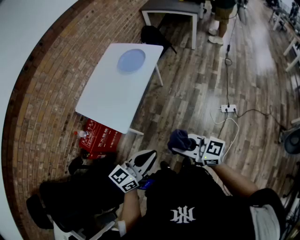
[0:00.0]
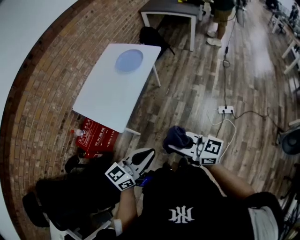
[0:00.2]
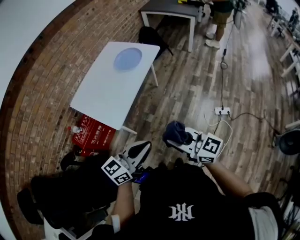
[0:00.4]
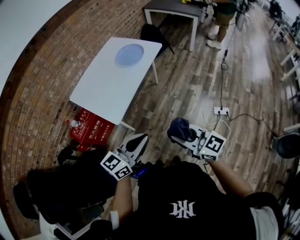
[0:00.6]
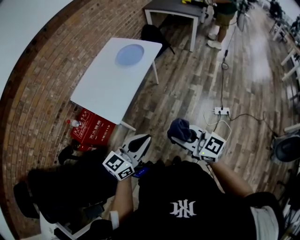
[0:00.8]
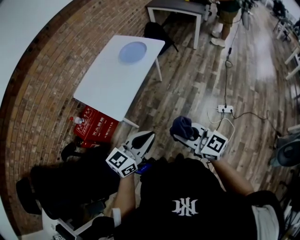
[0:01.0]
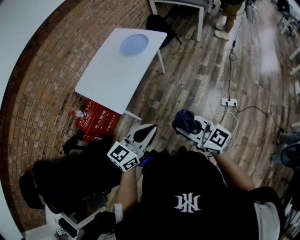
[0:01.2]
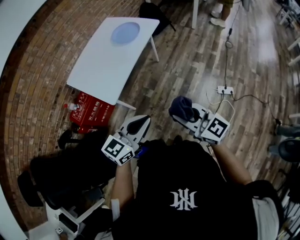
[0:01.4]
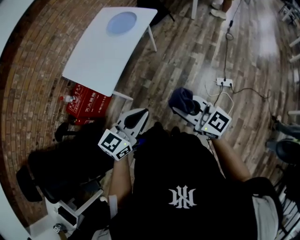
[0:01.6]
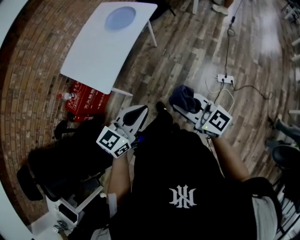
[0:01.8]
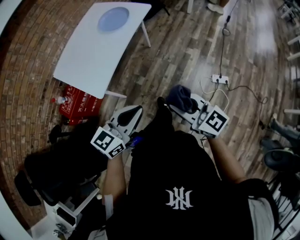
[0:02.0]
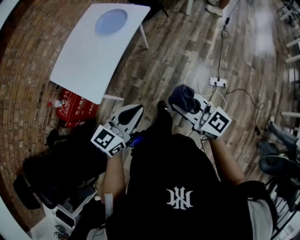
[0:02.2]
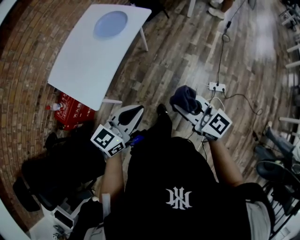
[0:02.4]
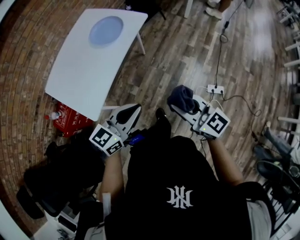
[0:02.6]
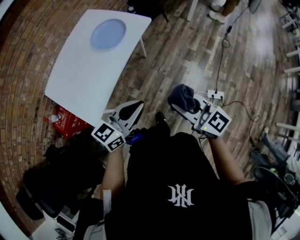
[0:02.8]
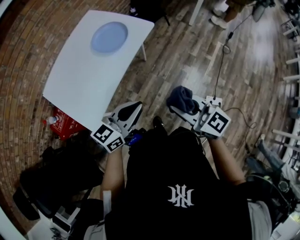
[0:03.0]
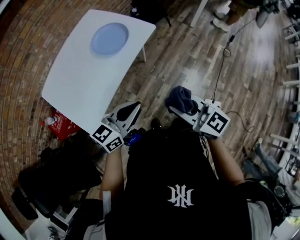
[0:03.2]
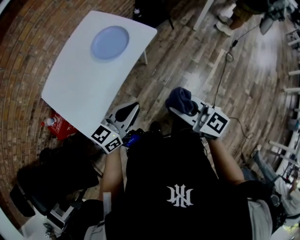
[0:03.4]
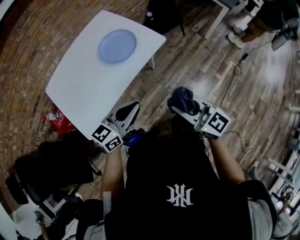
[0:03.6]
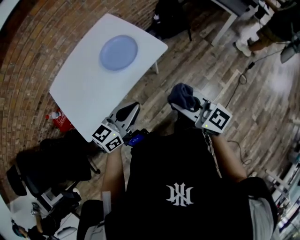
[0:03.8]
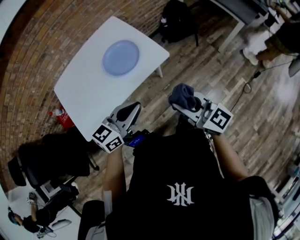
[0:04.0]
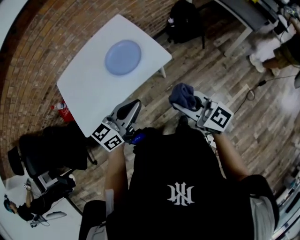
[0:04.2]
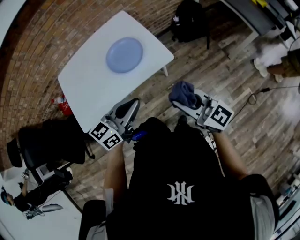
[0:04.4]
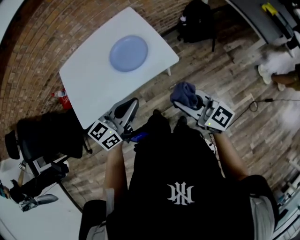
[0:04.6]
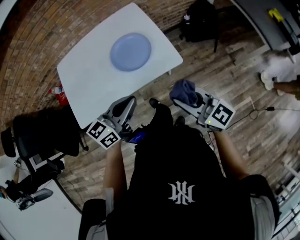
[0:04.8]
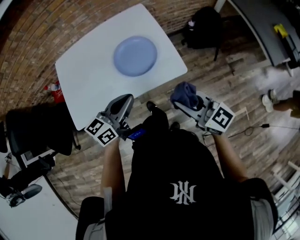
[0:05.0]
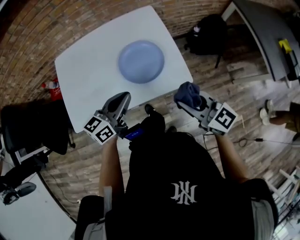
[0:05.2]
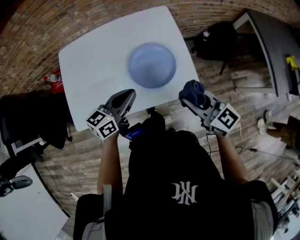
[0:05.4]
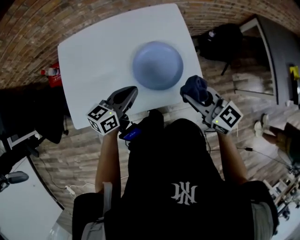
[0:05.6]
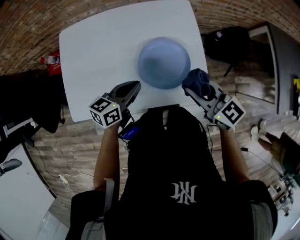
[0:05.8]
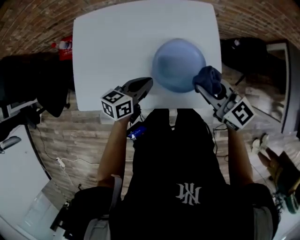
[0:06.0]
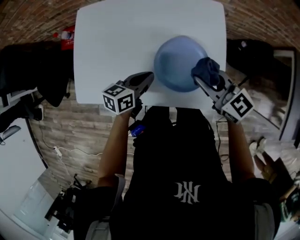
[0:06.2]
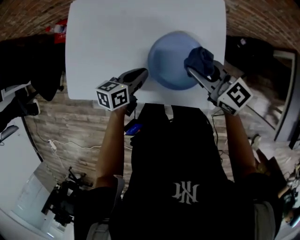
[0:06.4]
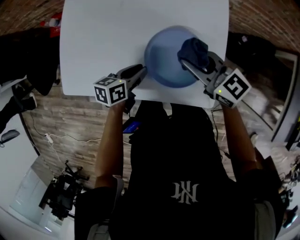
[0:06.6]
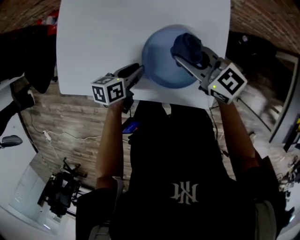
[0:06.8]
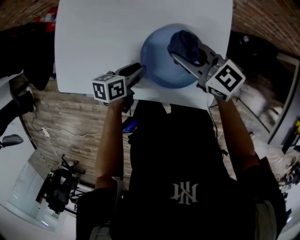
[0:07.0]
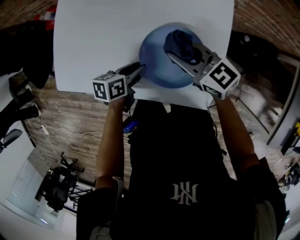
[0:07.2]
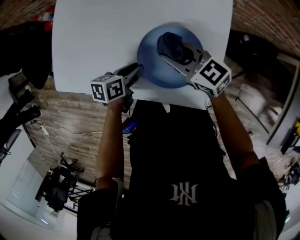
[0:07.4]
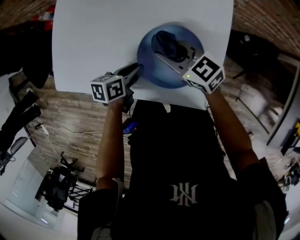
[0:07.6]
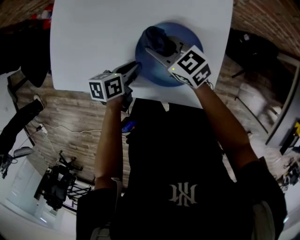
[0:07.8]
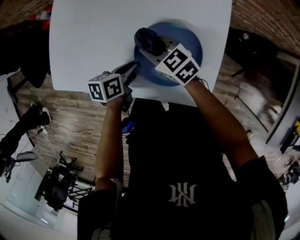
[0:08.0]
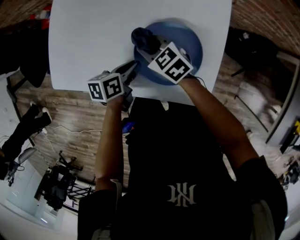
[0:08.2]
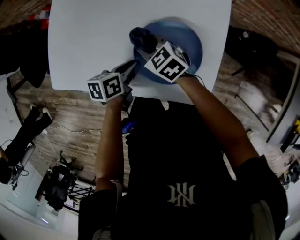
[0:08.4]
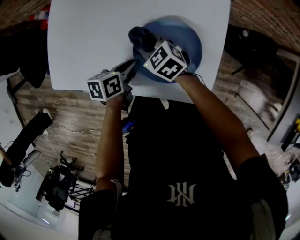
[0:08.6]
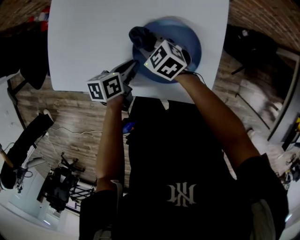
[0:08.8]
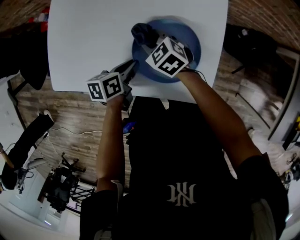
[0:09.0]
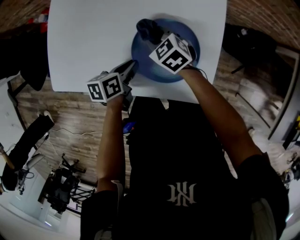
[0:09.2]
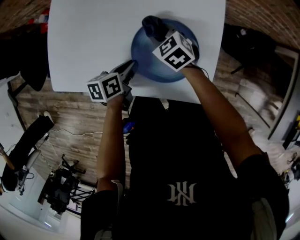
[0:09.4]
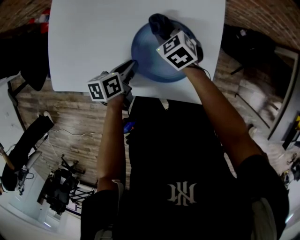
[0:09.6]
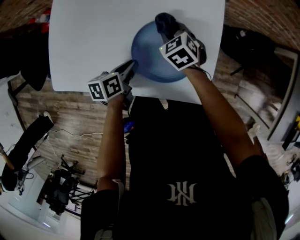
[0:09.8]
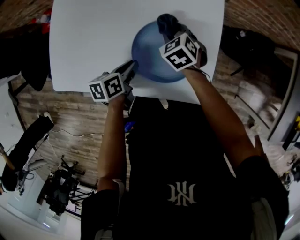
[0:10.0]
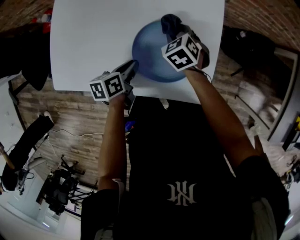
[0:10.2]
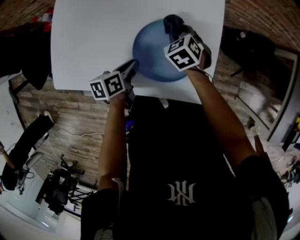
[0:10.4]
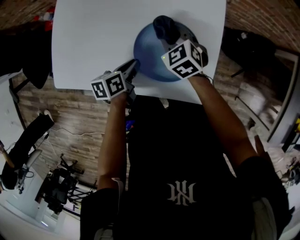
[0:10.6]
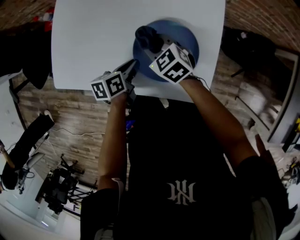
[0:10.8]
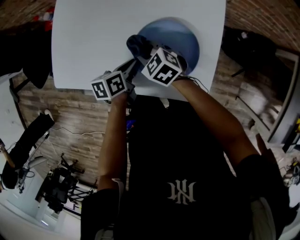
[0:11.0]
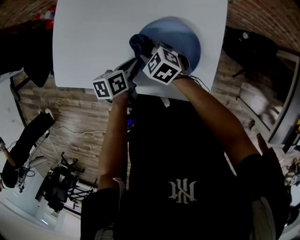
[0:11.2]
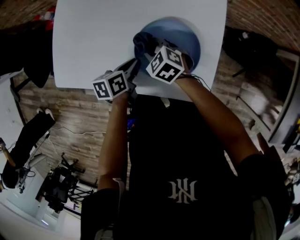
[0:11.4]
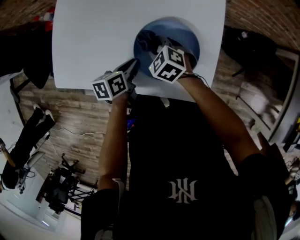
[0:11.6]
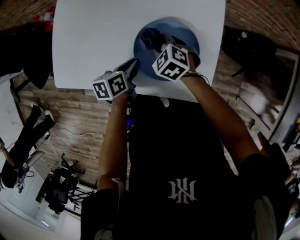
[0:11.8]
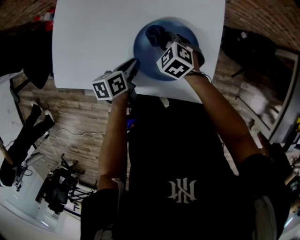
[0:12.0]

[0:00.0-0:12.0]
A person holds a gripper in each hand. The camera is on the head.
0:00.0 to 0:01.6: The left gripper moves about 5 cm; the right gripper moves to the right, roughly 5 cm.
0:01.6 to 0:03.0: The grippers both shift forward by about 30 cm.
0:03.0 to 0:04.4: The left gripper moves about 25 cm, and changes its angle by some 30 degrees. Meanwhile the right gripper changes place by approximately 30 cm, and rotates roughly 30 degrees.
0:04.4 to 0:06.0: The left gripper shifts roughly 35 cm forward, to the left and downward, and turns by roughly 40 degrees; the right gripper shifts some 35 cm forward, and changes its angle by approximately 30 degrees.
0:06.0 to 0:07.6: The left gripper heads downward, covering roughly 10 cm, and changes its angle by some 30 degrees; the right gripper goes roughly 15 cm downward, forward and to the left, and turns by approximately 20 degrees.
0:07.6 to 0:09.0: The right gripper heads downward, covering roughly 10 cm, and changes its angle by some 20 degrees.
0:09.0 to 0:10.4: The right gripper moves to the right, about 10 cm, and rotates some 30 degrees.
0:10.4 to 0:12.0: The right gripper travels to the left by roughly 5 cm, and swivels approximately 20 degrees.

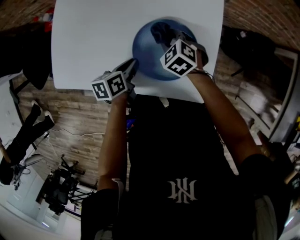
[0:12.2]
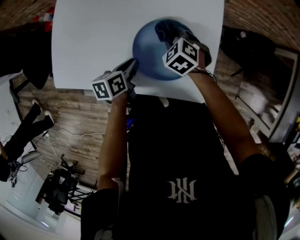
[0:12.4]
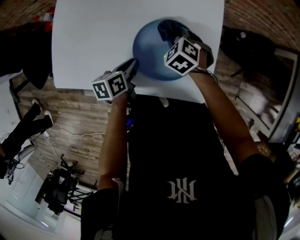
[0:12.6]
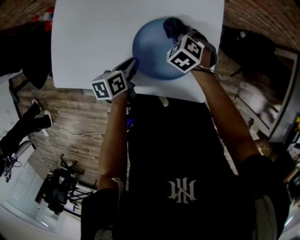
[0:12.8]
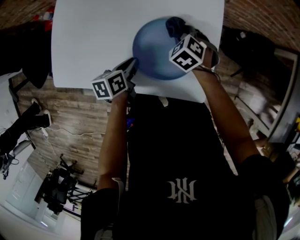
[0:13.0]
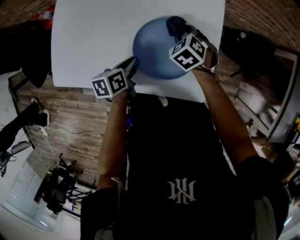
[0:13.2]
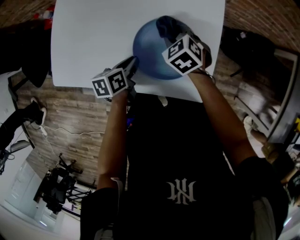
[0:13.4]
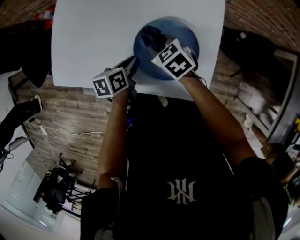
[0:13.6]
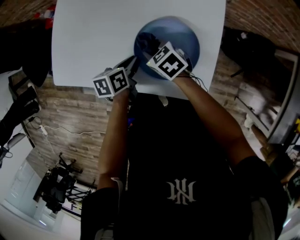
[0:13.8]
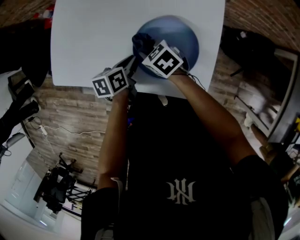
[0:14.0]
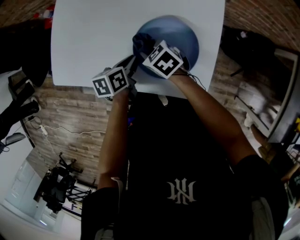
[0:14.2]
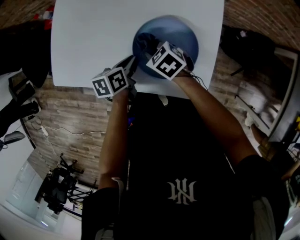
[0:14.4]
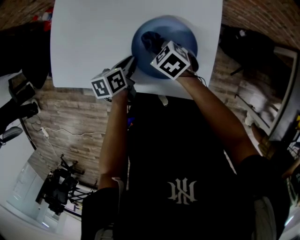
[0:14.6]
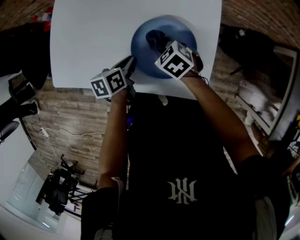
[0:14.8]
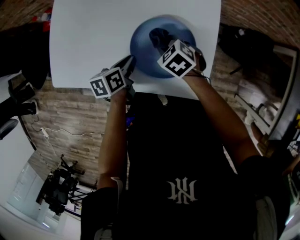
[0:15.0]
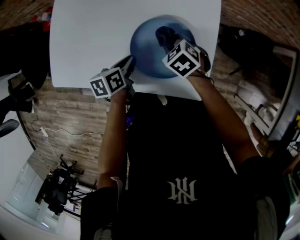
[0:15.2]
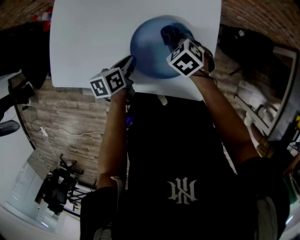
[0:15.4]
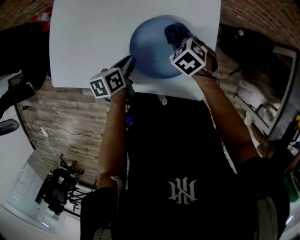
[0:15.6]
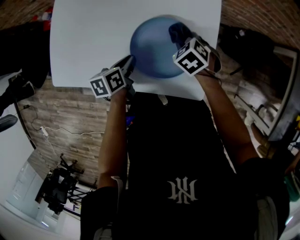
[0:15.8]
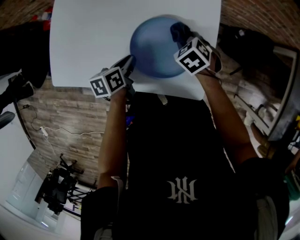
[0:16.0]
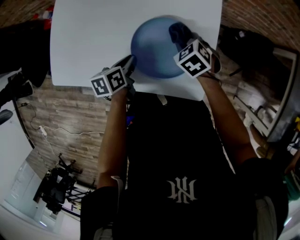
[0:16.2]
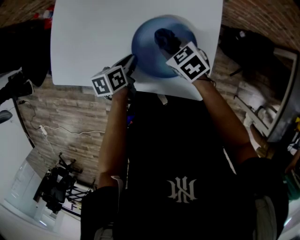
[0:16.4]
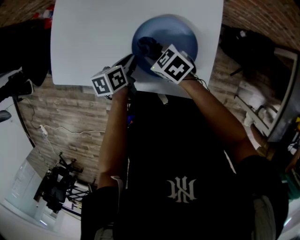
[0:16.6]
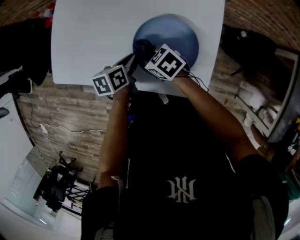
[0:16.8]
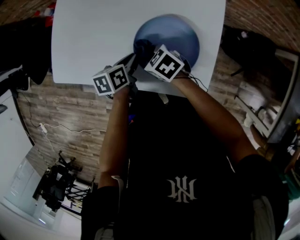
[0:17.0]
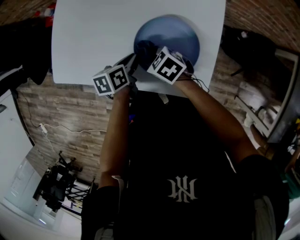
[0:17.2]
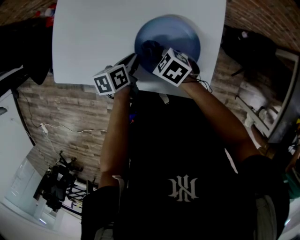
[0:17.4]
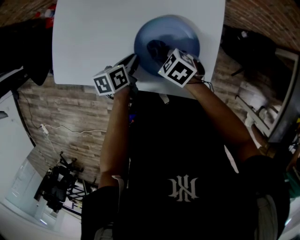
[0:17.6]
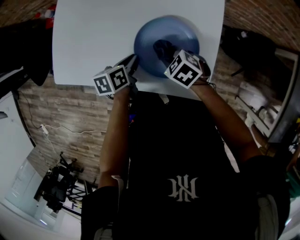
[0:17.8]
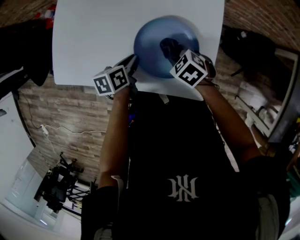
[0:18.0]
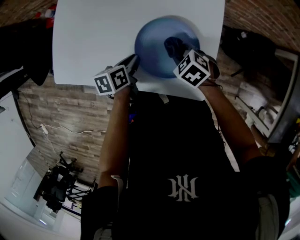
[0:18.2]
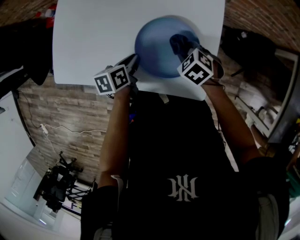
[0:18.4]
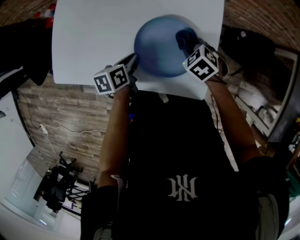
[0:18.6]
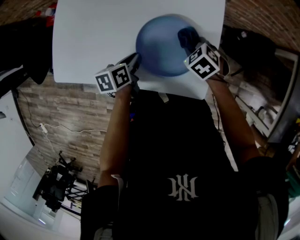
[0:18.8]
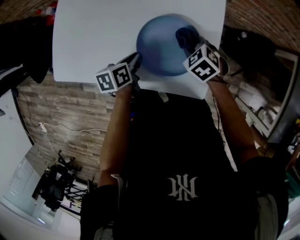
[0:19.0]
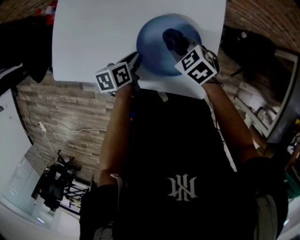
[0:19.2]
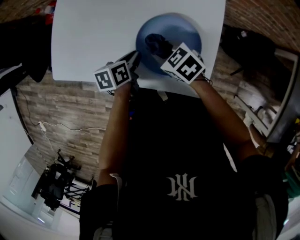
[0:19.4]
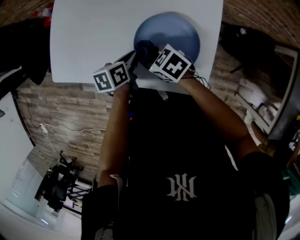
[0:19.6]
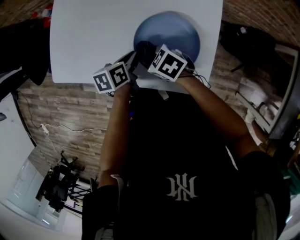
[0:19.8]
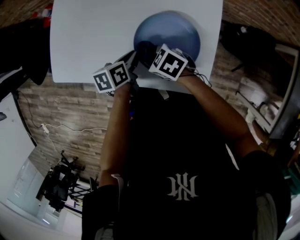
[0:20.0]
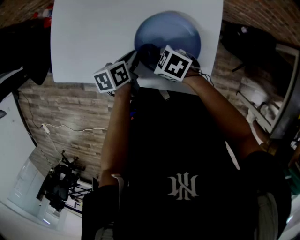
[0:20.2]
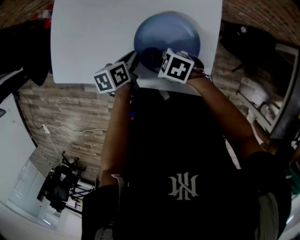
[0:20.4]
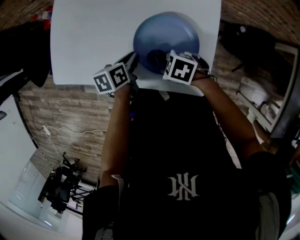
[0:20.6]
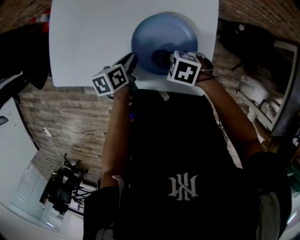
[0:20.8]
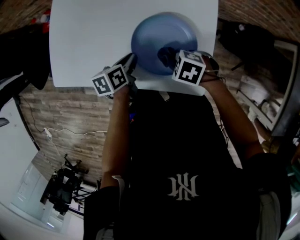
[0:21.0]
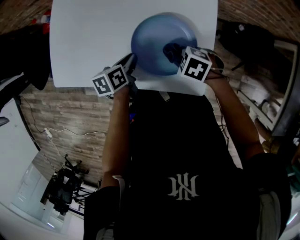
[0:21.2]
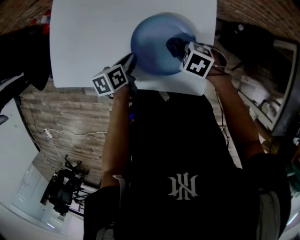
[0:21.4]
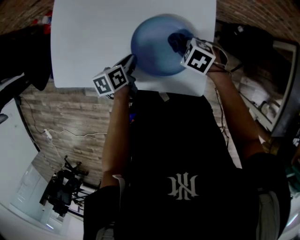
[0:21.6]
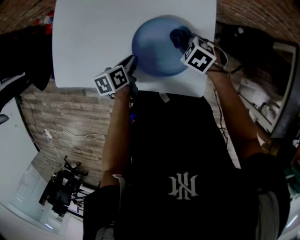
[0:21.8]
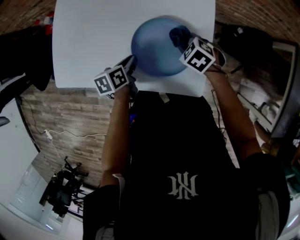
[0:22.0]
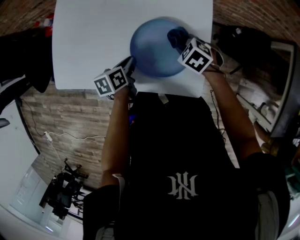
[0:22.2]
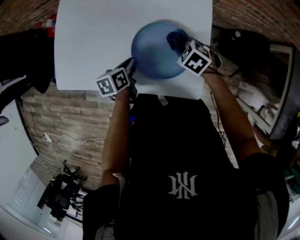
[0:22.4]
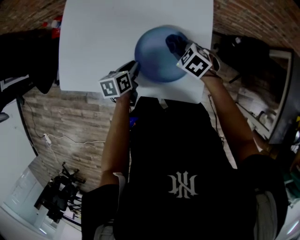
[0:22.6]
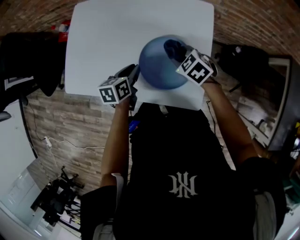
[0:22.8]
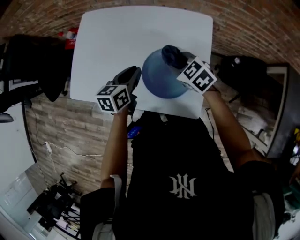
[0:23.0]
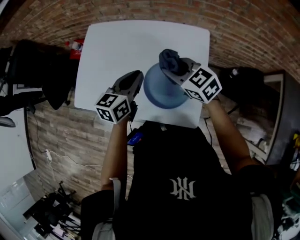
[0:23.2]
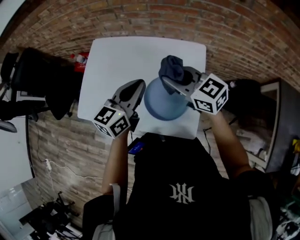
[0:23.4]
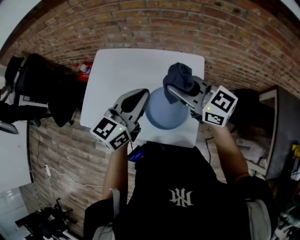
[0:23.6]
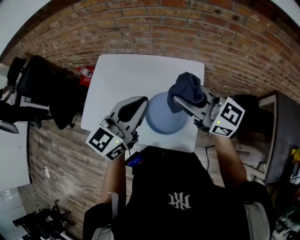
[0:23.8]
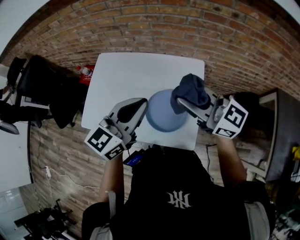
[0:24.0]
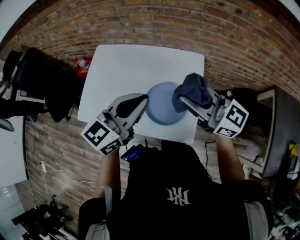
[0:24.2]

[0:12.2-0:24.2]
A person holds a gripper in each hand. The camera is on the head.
0:12.2 to 0:13.8: The right gripper heads to the left and backward, covering roughly 10 cm, and rotates some 30 degrees.
0:13.8 to 0:15.2: The right gripper moves to the right, approximately 10 cm, and swivels approximately 20 degrees.
0:15.2 to 0:16.6: The right gripper travels to the left by about 10 cm, and turns by about 20 degrees.
0:16.6 to 0:18.2: The right gripper moves to the right, about 10 cm, and turns by about 20 degrees.
0:18.2 to 0:19.8: The right gripper shifts some 10 cm to the left, and rotates approximately 20 degrees.
0:19.8 to 0:21.2: The right gripper shifts by about 15 cm, and swivels some 20 degrees.
0:21.2 to 0:22.6: The right gripper ends up roughly 10 cm from where it was, and changes its angle by roughly 20 degrees.
0:22.6 to 0:24.2: Both grippers travel together upward, roughly 35 cm. The left gripper tilts its fingers about 40 degrees upward; the right gripper tips its fingers upward by some 60 degrees.
